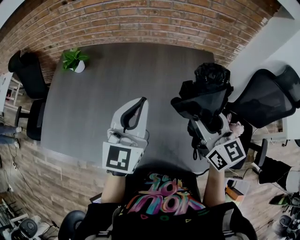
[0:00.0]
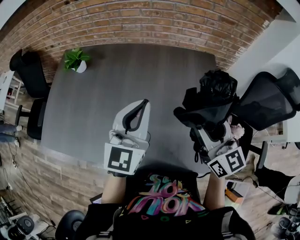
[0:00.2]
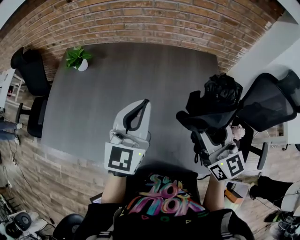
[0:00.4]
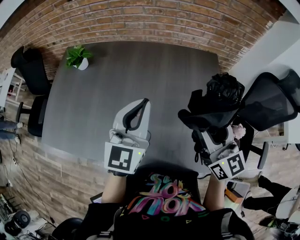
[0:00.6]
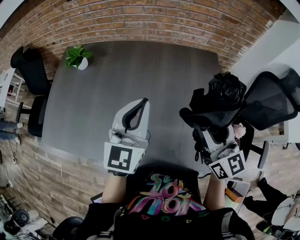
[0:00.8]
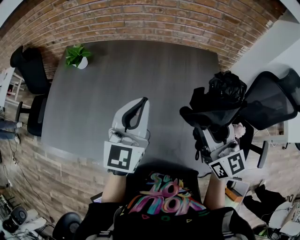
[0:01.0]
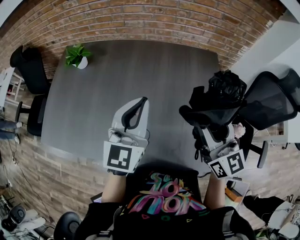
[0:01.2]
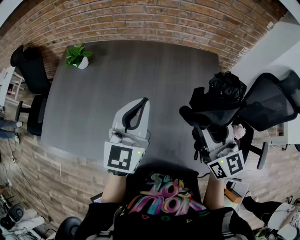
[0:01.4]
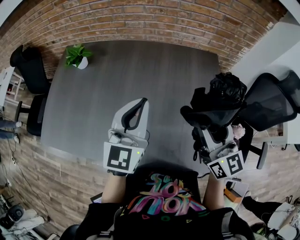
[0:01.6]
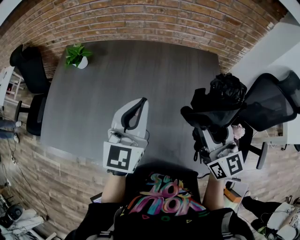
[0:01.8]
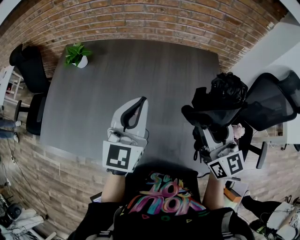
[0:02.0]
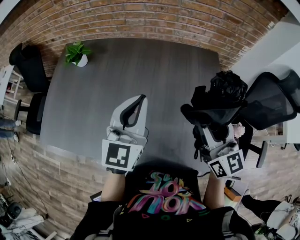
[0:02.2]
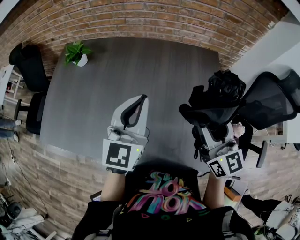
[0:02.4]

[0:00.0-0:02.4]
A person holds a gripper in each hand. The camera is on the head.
0:00.0 to 0:01.2: The grippers make only small movements.
0:01.2 to 0:02.4: Both grippers stay put.

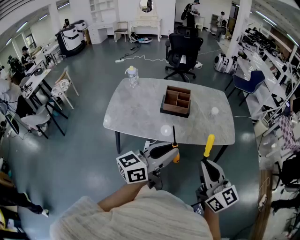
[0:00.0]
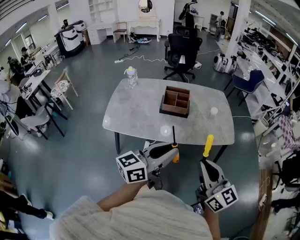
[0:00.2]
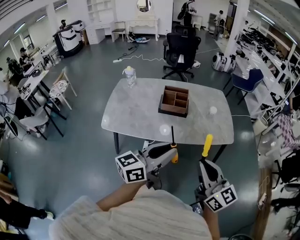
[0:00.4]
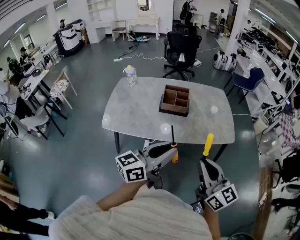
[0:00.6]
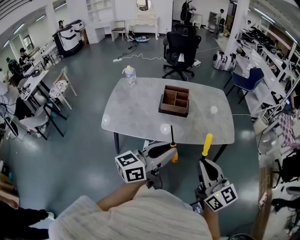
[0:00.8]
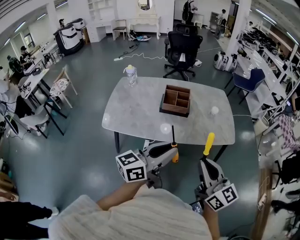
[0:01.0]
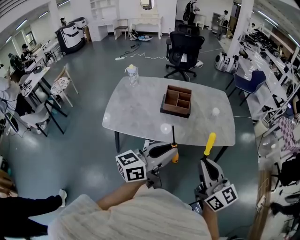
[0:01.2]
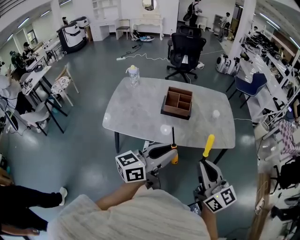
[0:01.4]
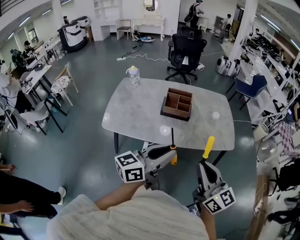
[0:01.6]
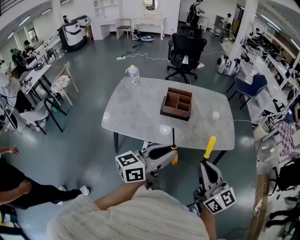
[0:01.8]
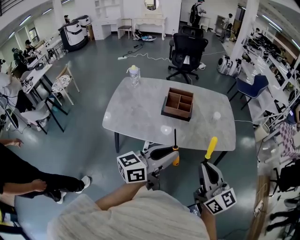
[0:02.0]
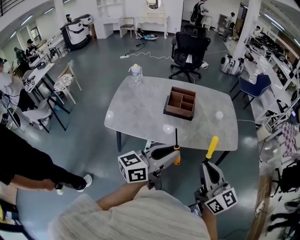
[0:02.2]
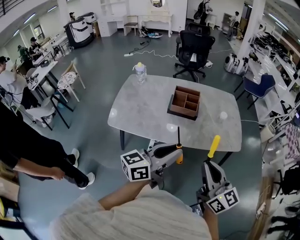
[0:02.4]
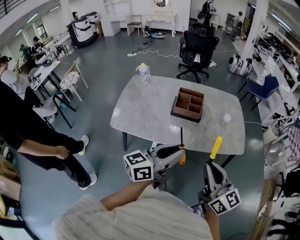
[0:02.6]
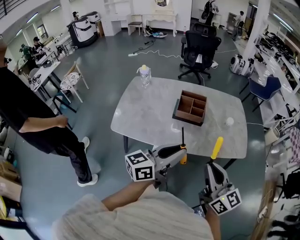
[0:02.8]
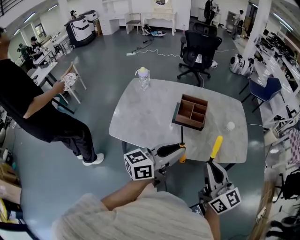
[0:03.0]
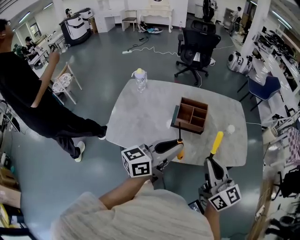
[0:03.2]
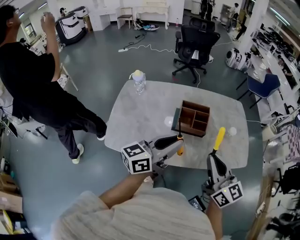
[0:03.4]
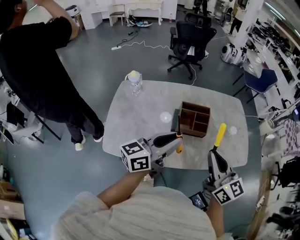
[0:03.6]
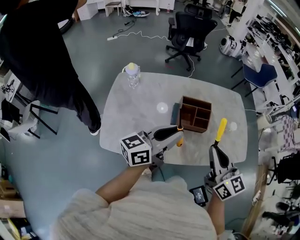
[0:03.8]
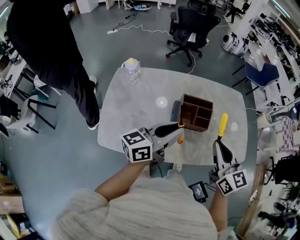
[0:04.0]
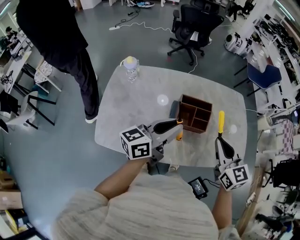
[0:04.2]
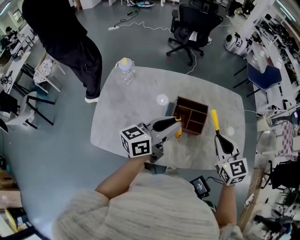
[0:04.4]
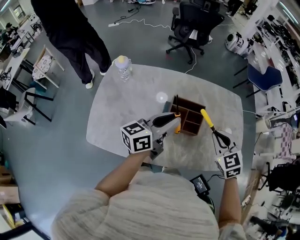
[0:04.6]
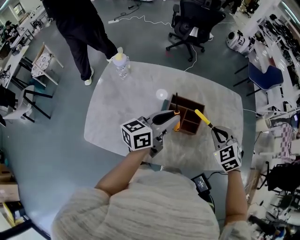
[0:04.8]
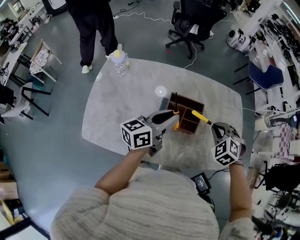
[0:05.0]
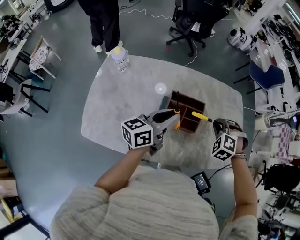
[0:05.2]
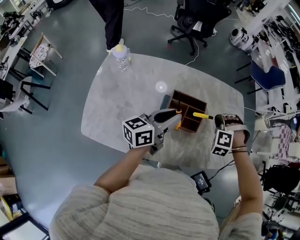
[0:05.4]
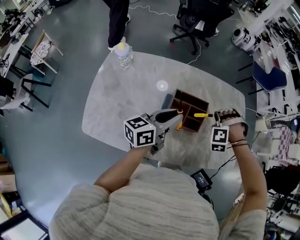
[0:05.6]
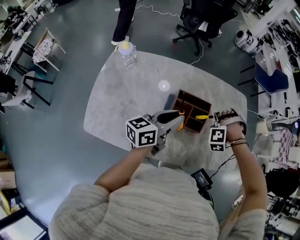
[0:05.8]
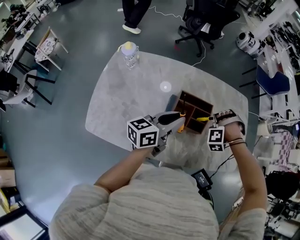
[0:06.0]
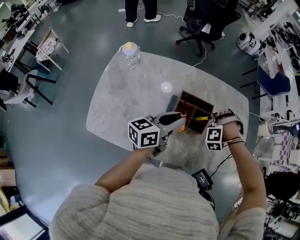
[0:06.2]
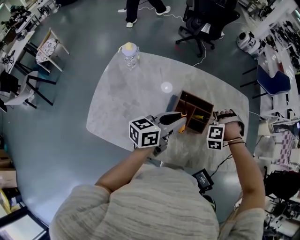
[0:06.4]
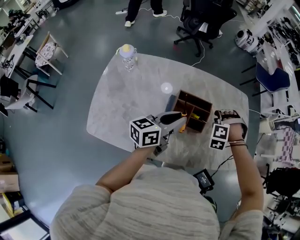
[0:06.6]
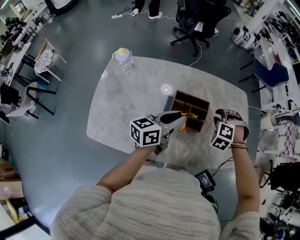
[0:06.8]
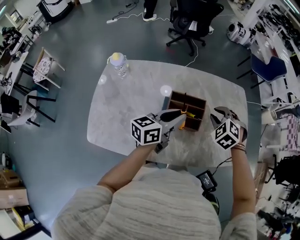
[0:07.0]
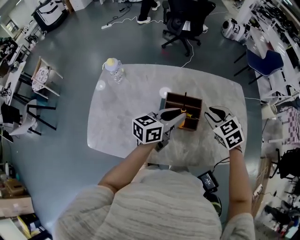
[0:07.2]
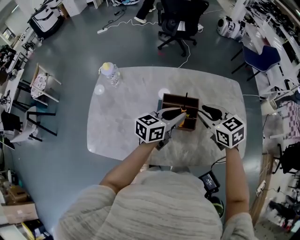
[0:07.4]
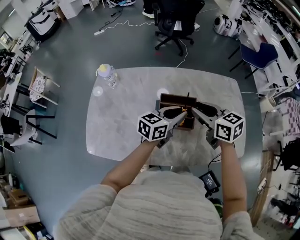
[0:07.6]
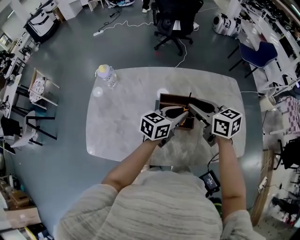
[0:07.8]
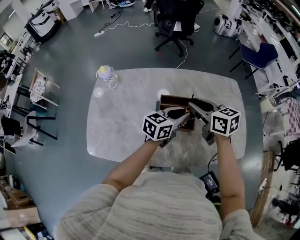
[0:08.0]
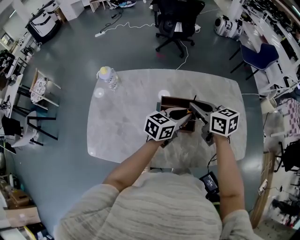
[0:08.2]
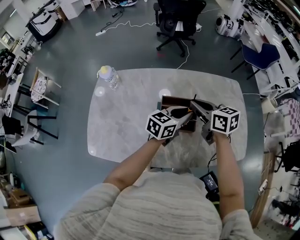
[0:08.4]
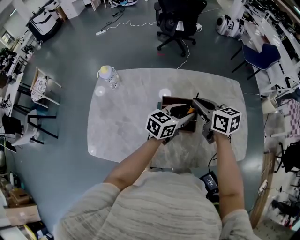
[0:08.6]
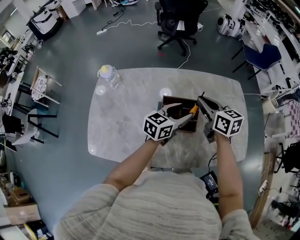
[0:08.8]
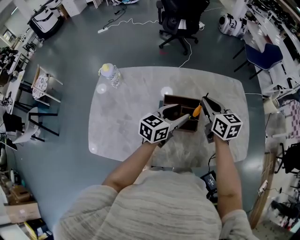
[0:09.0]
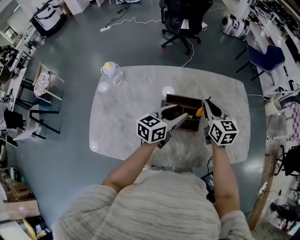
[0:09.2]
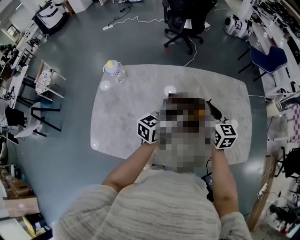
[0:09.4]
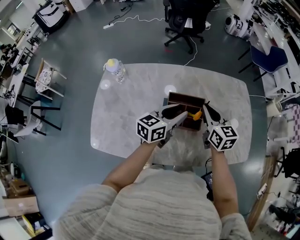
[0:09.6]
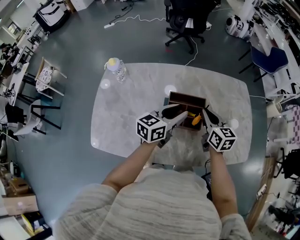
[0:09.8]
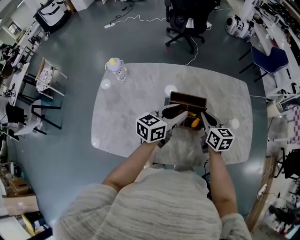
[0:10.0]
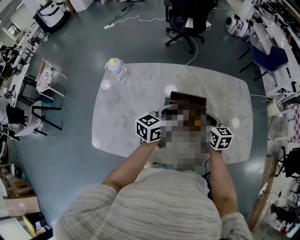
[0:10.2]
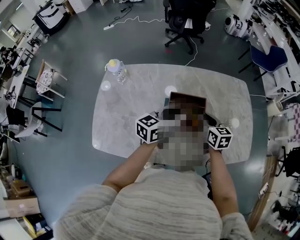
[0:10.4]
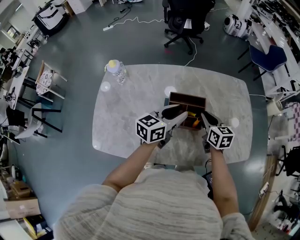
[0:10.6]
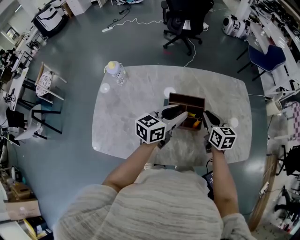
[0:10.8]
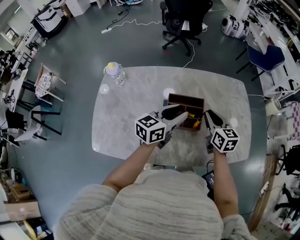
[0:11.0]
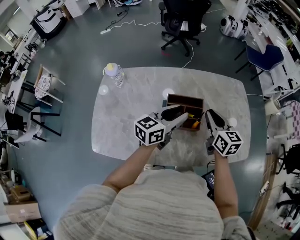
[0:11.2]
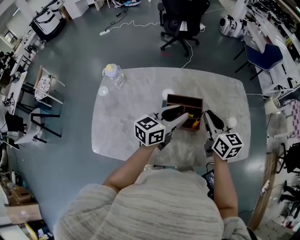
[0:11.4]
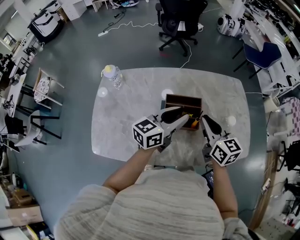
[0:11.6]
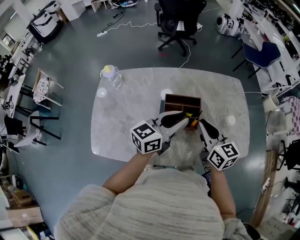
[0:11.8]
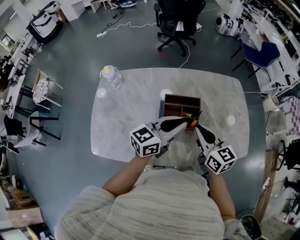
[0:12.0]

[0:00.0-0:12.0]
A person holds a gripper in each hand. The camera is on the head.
0:00.0 to 0:01.6: The grippers make only small movements.
0:01.6 to 0:03.0: Both grippers travel together forward and to the left, approximately 15 cm.
0:03.0 to 0:04.4: Both grippers move forward, about 30 cm. The right gripper points its fingers some 30 degrees further downward.
0:04.4 to 0:06.0: The right gripper moves downward, approximately 15 cm, and twists roughly 100 degrees counterclockwise, seen from behind, while the left gripper goes some 5 cm downward.
0:06.0 to 0:07.6: The left gripper moves about 10 cm, and changes its angle by some 20 degrees; the right gripper shifts roughly 15 cm upward, and twists about 110 degrees clockwise, seen from behind.
0:07.6 to 0:09.0: The left gripper opens. The right gripper shifts about 5 cm forward.
0:09.0 to 0:10.4: The right gripper heads downward and backward, covering approximately 10 cm.
0:10.4 to 0:12.0: The right gripper moves upward and backward, roughly 15 cm. The left gripper shifts approximately 5 cm backward and upward, and closes its fingers.

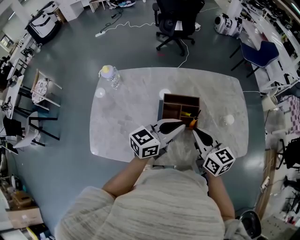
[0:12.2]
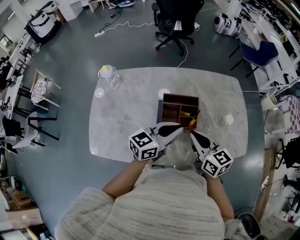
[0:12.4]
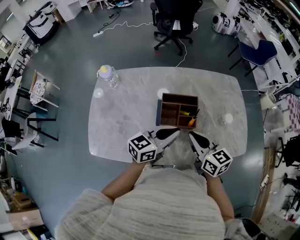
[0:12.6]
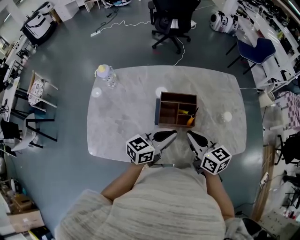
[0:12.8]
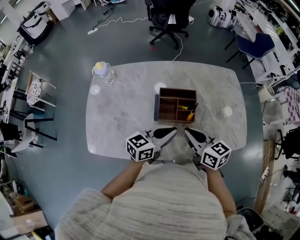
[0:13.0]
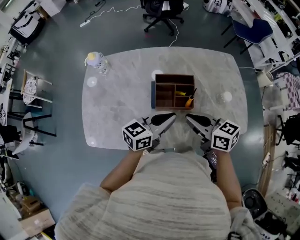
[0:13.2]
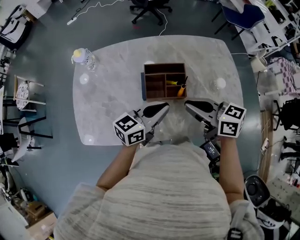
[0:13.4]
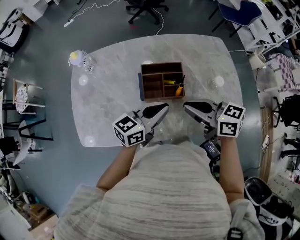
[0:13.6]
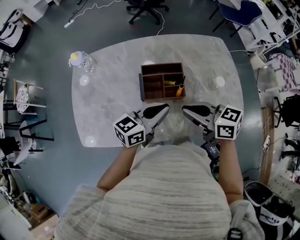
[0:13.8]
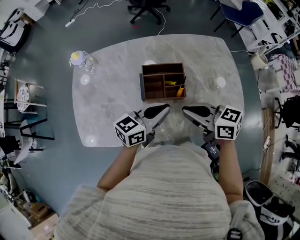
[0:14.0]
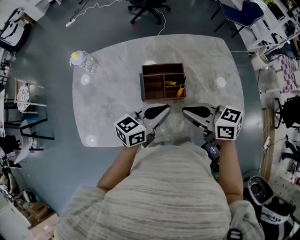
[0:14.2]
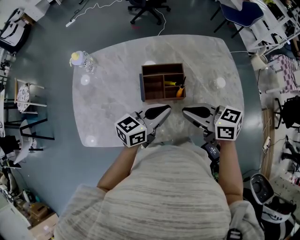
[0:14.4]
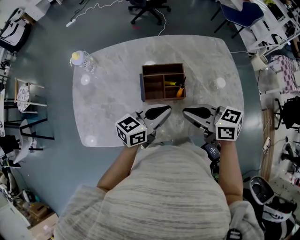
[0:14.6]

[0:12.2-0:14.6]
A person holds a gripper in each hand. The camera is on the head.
0:12.2 to 0:13.4: The right gripper changes its angle by some 20 degrees, while the left gripper moves downward, approximately 5 cm.
0:13.4 to 0:14.6: The grippers move only a little.

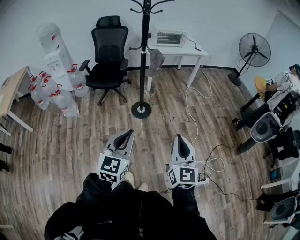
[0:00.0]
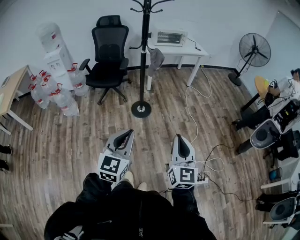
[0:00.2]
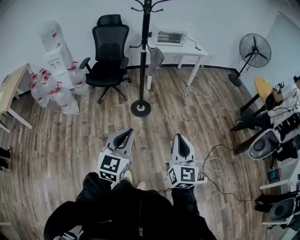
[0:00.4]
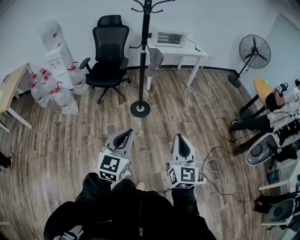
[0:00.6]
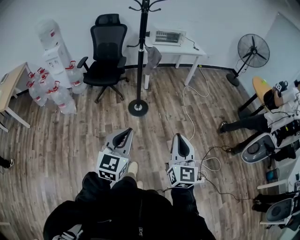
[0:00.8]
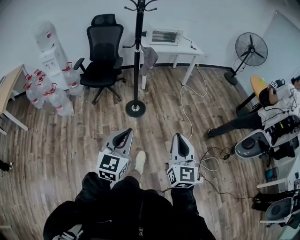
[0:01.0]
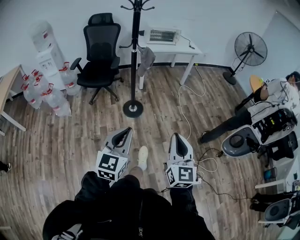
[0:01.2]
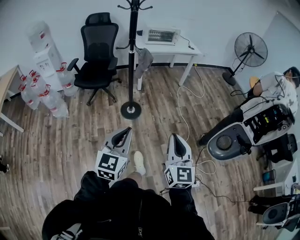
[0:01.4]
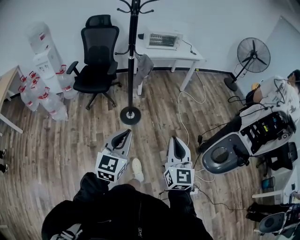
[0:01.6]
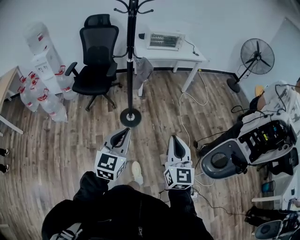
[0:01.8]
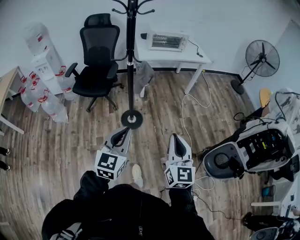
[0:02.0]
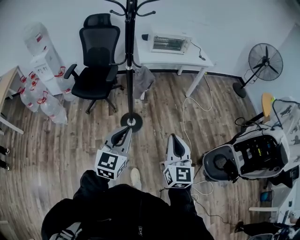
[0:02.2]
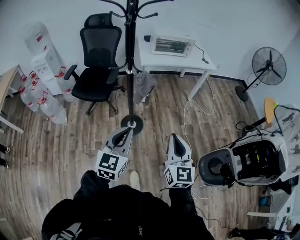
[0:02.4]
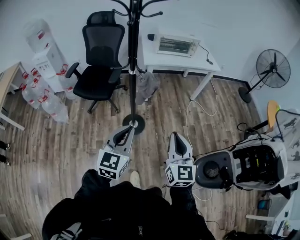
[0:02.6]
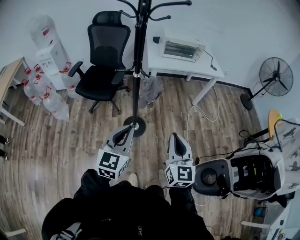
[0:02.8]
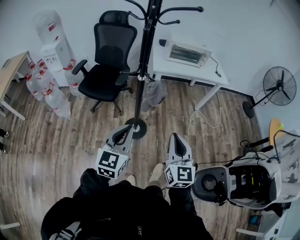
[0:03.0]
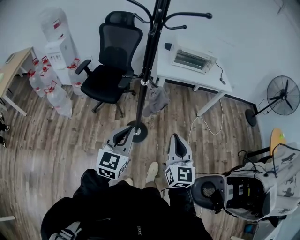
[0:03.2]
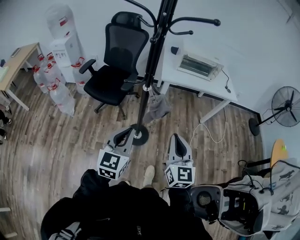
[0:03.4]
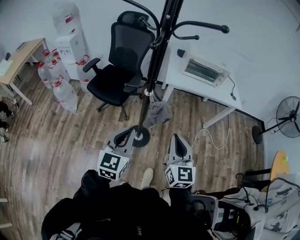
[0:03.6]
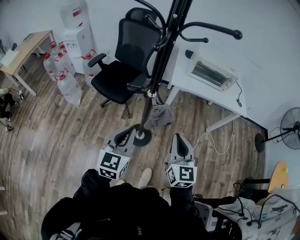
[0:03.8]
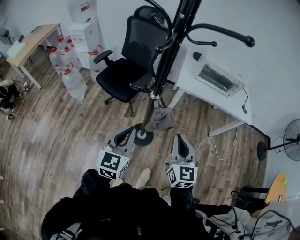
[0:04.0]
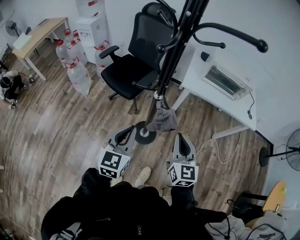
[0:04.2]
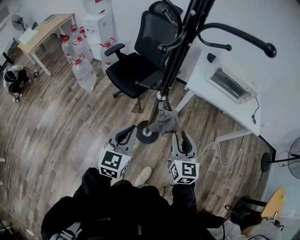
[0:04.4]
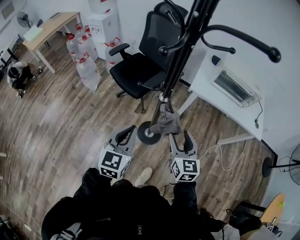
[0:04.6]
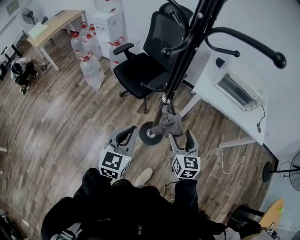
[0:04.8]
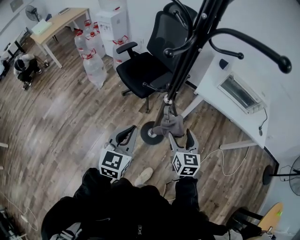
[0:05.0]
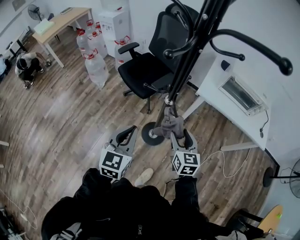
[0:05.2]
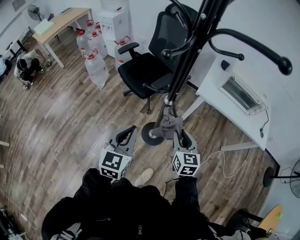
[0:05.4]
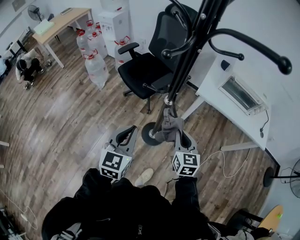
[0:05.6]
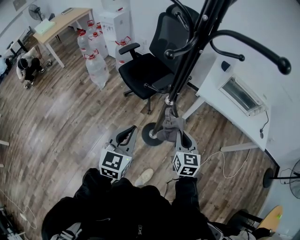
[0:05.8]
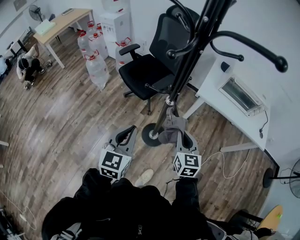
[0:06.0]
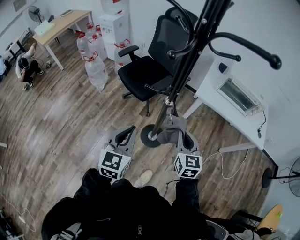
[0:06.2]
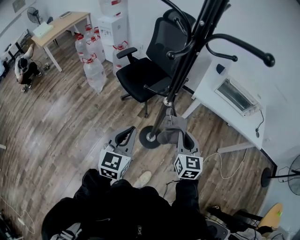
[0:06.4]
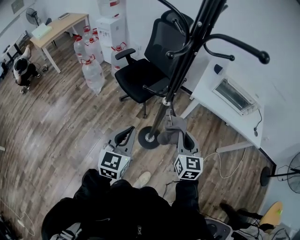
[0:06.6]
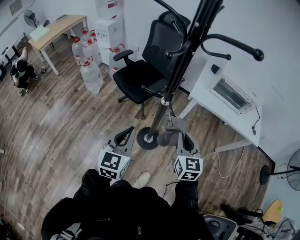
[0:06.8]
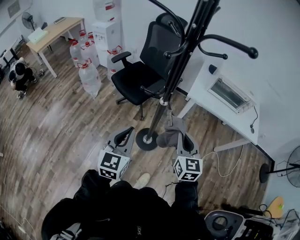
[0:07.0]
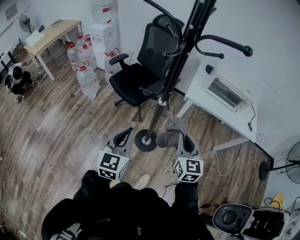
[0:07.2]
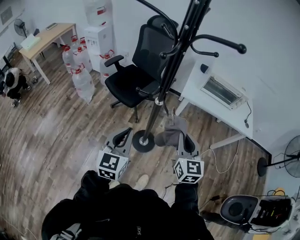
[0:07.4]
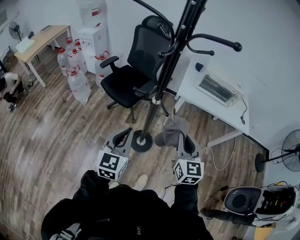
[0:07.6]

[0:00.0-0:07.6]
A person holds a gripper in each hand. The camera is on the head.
0:00.0 to 0:01.6: The two grippers go approximately 15 cm forward.
0:01.6 to 0:03.0: The two grippers go approximately 35 cm forward.
0:03.0 to 0:04.6: The right gripper moves approximately 30 cm, changes its angle by approximately 30 degrees, and opens up. The left gripper moves approximately 20 cm, and changes its angle by approximately 30 degrees.
0:04.6 to 0:06.0: The right gripper closes its fingers.
0:06.0 to 0:07.6: The left gripper goes about 5 cm backward. Meanwhile the right gripper goes some 15 cm upward and backward.
